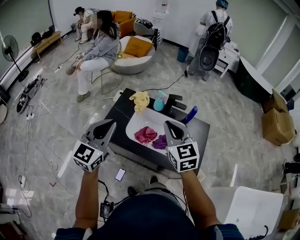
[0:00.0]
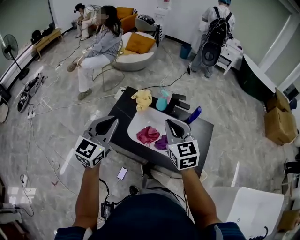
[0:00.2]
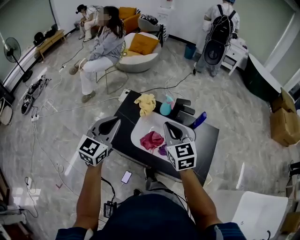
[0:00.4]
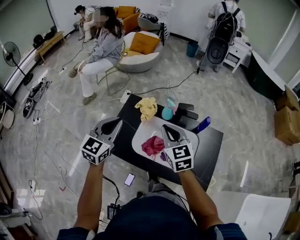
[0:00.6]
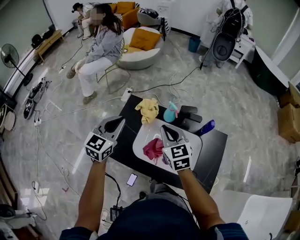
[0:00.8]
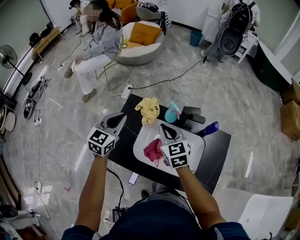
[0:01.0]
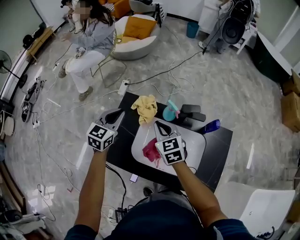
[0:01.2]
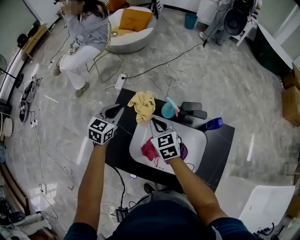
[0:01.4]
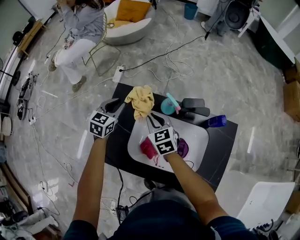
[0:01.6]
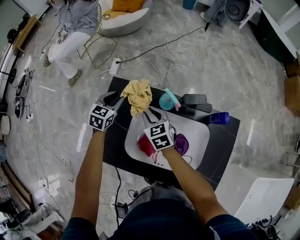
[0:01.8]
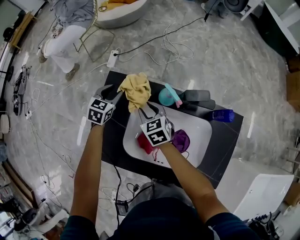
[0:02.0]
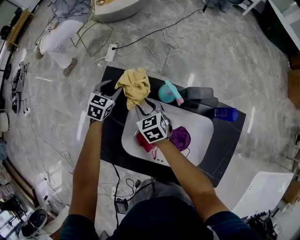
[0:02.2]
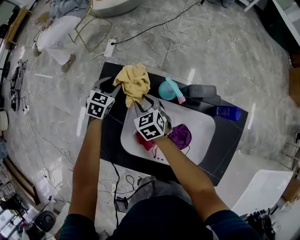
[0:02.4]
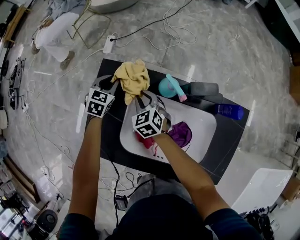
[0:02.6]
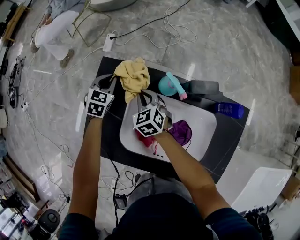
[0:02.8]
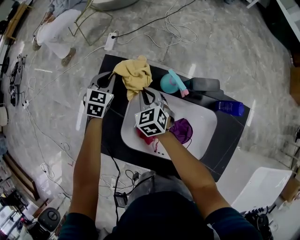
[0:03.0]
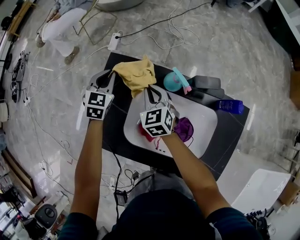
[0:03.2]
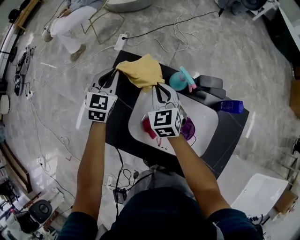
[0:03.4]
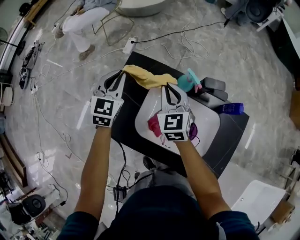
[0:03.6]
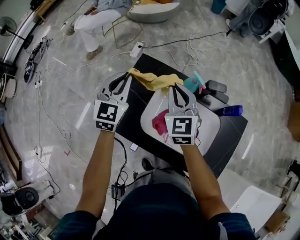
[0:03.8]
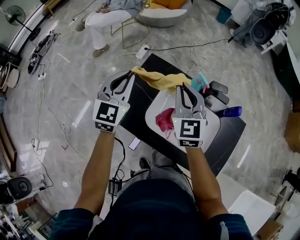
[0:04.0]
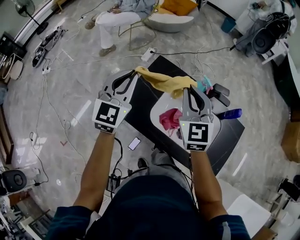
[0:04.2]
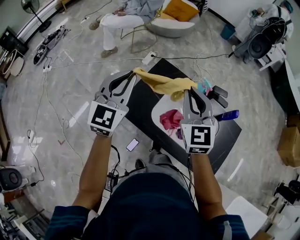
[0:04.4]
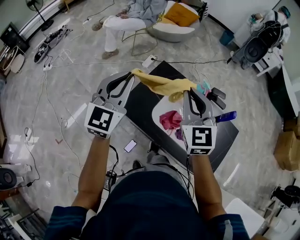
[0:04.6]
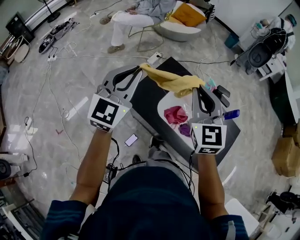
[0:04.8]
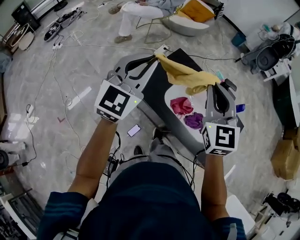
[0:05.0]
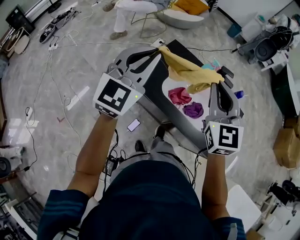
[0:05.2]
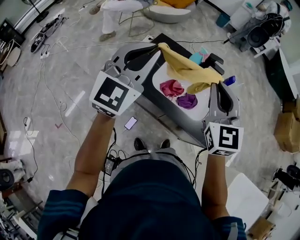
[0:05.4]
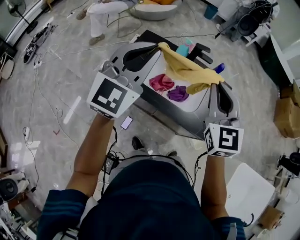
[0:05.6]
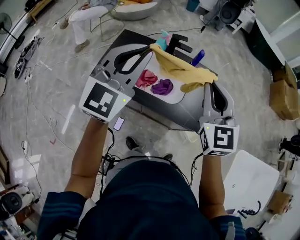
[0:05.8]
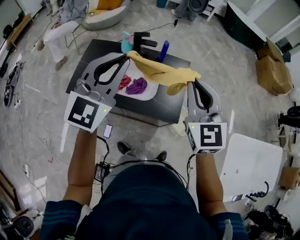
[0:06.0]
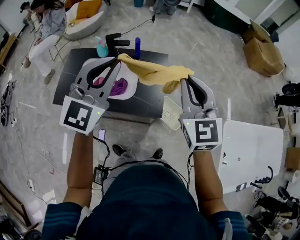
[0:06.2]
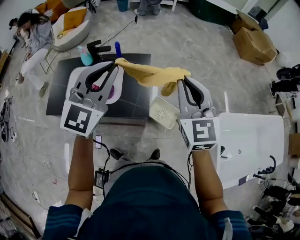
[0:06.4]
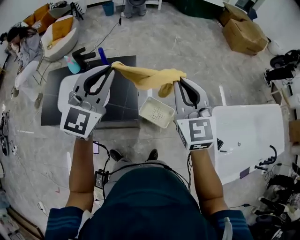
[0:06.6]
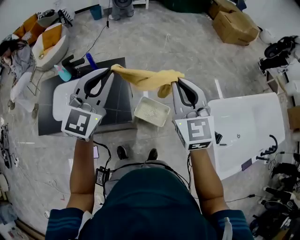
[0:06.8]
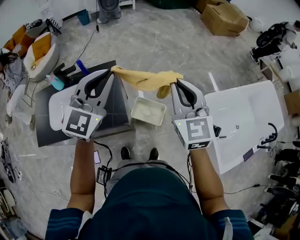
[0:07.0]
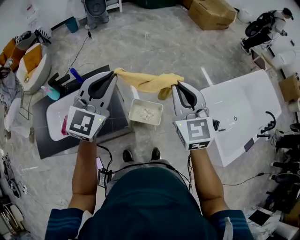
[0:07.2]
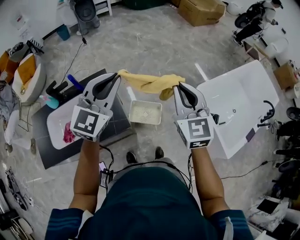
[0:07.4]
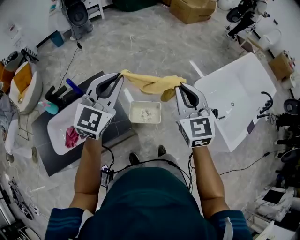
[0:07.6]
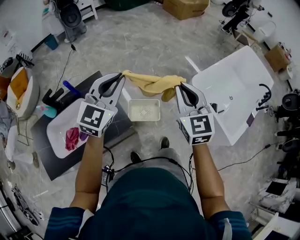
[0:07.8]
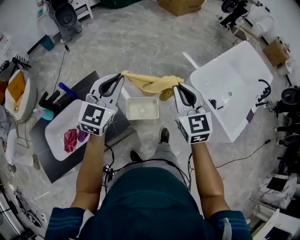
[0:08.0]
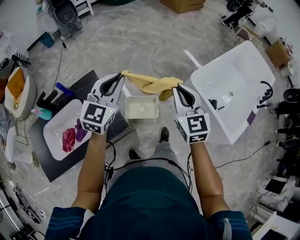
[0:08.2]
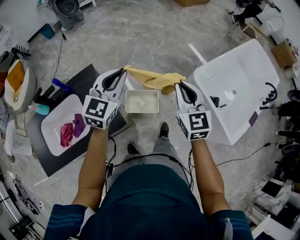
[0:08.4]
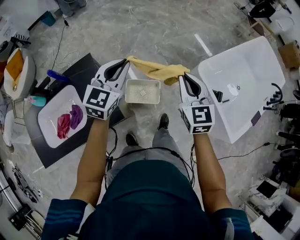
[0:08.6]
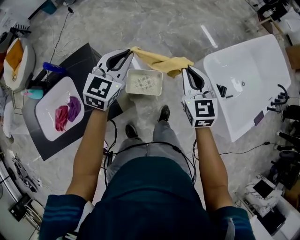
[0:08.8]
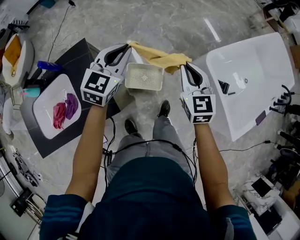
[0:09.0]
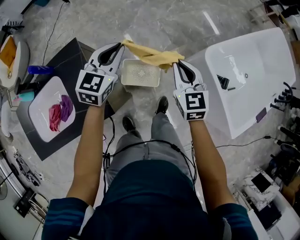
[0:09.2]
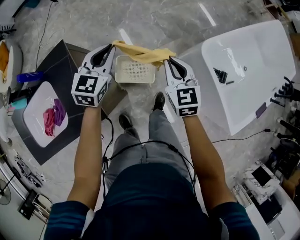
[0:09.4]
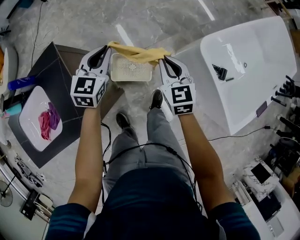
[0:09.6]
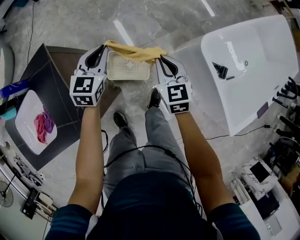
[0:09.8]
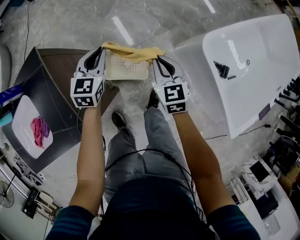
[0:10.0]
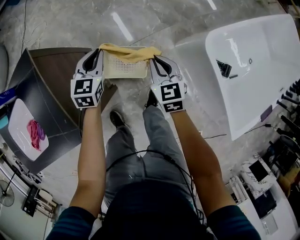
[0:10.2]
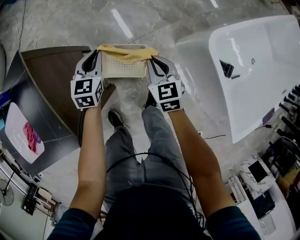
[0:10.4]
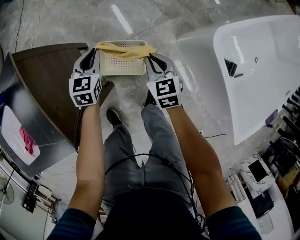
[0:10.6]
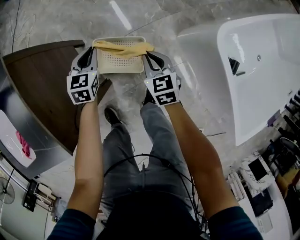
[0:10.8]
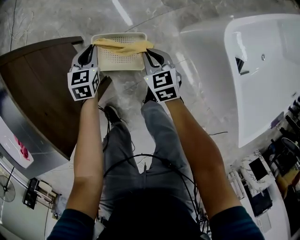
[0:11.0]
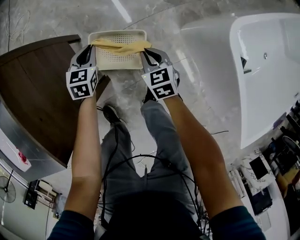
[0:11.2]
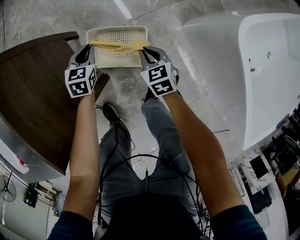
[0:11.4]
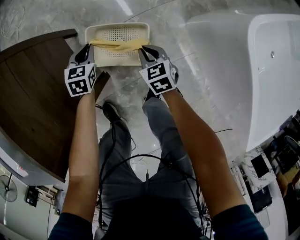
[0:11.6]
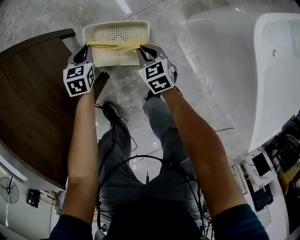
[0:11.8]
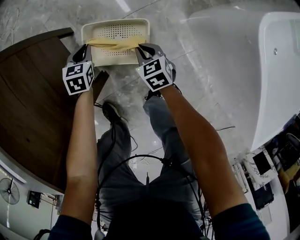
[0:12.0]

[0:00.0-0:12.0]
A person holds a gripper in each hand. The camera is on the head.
0.0 to 1.6 s: Both grippers travel together forward and downward, about 50 cm. The right gripper rotates approximately 20 degrees; the left gripper points its fingers approximately 30 degrees further downward.
1.6 to 3.0 s: The left gripper heads downward and forward, covering some 15 cm, and opens and closes again. Meanwhile the right gripper moves downward, roughly 10 cm, and opens, then closes once more.
3.0 to 4.4 s: The two grippers go approximately 50 cm upward and backward. The left gripper tips its fingers upward by some 40 degrees, while the right gripper changes its angle by some 30 degrees.
4.4 to 6.0 s: The pair of grippers is taken about 50 cm. The left gripper turns by roughly 30 degrees, while the right gripper swivels about 20 degrees.
6.0 to 7.6 s: The left gripper moves approximately 40 cm, and rotates approximately 40 degrees; the right gripper ends up some 35 cm from where it was, and swivels approximately 40 degrees.
7.6 to 9.0 s: Both grippers move downward and forward, roughly 30 cm.
9.0 to 10.4 s: Both grippers move downward, roughly 40 cm. The left gripper rotates roughly 30 degrees.
10.4 to 12.0 s: The two grippers go about 35 cm downward. The left gripper swivels roughly 20 degrees.

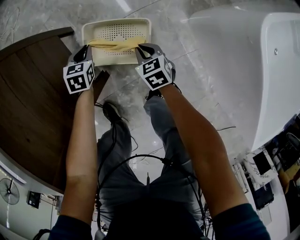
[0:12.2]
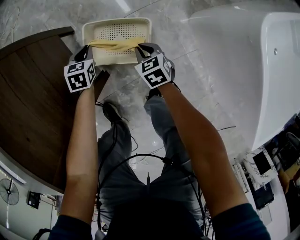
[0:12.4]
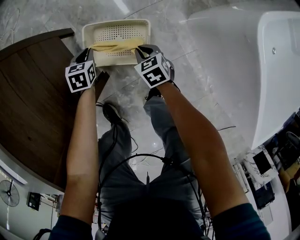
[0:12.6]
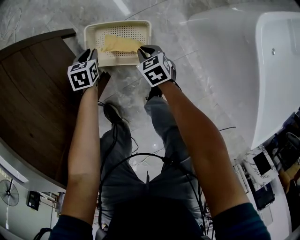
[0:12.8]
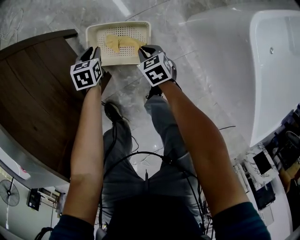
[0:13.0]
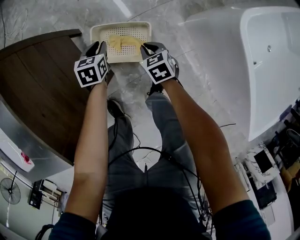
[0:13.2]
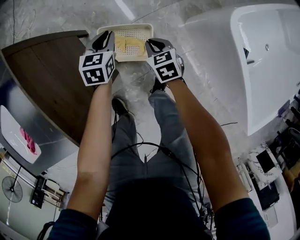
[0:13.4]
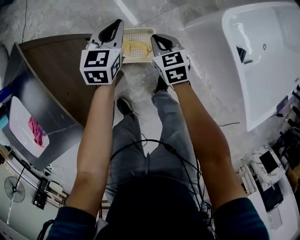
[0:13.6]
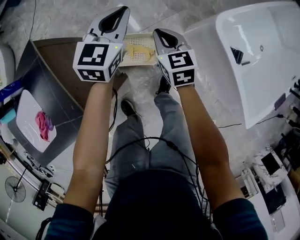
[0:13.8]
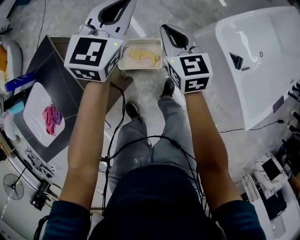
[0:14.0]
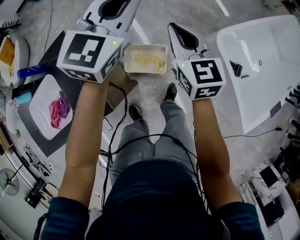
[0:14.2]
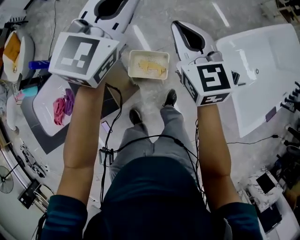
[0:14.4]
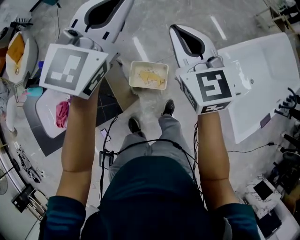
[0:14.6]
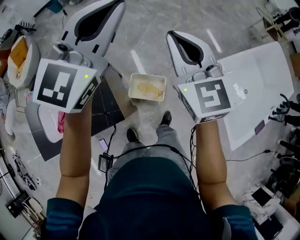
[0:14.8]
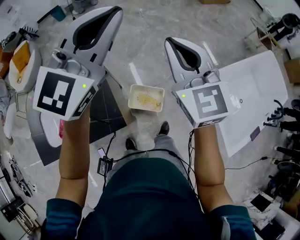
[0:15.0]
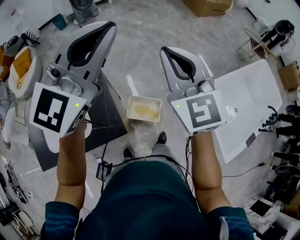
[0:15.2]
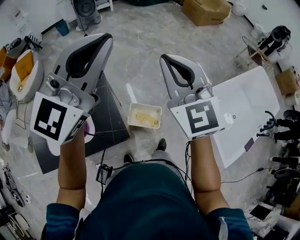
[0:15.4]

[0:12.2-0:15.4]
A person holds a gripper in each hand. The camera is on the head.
12.2 to 13.8 s: Both grippers move upward, roughly 50 cm. The right gripper turns by some 20 degrees; the left gripper angles its fingers upward, by about 40 degrees.
13.8 to 15.4 s: The grippers both shift upward by some 35 cm. The right gripper changes its angle by some 40 degrees. Meanwhile the left gripper tilts its fingers some 30 degrees upward.

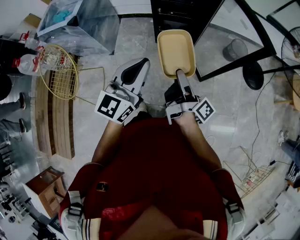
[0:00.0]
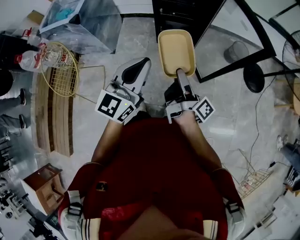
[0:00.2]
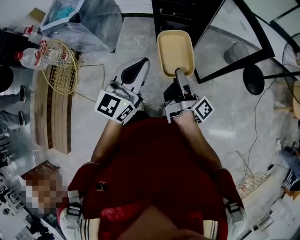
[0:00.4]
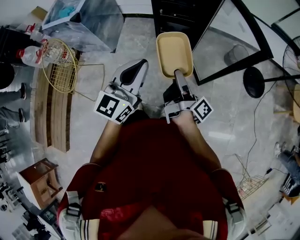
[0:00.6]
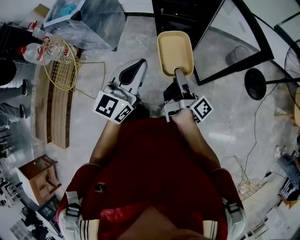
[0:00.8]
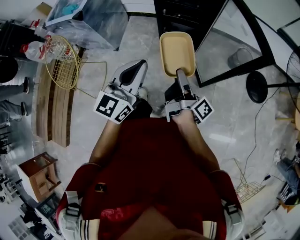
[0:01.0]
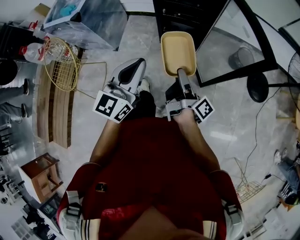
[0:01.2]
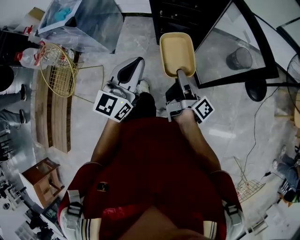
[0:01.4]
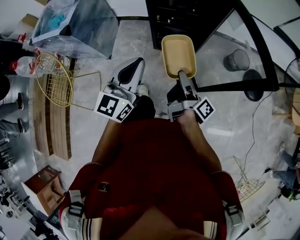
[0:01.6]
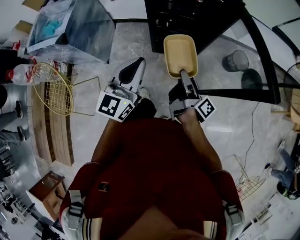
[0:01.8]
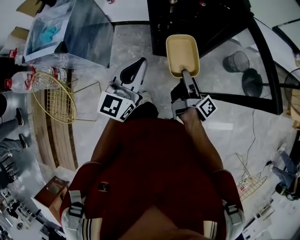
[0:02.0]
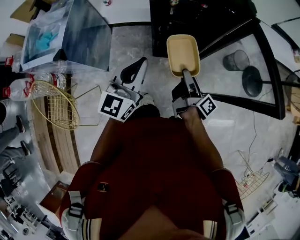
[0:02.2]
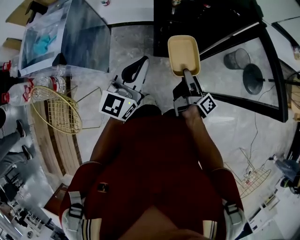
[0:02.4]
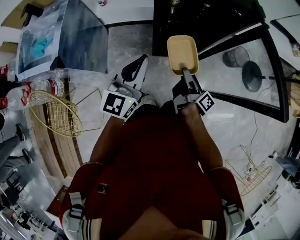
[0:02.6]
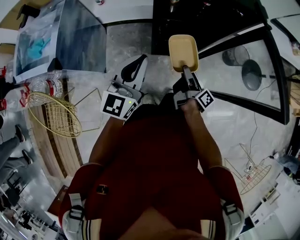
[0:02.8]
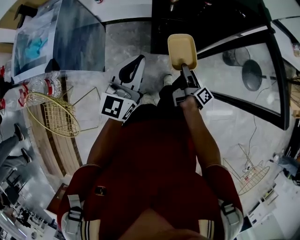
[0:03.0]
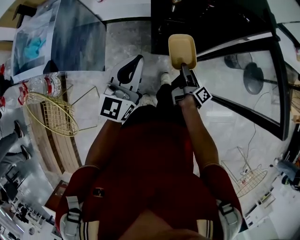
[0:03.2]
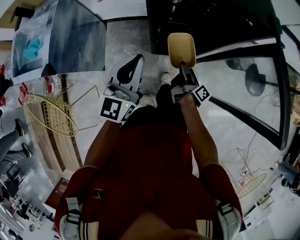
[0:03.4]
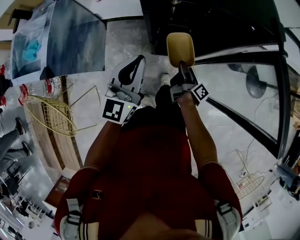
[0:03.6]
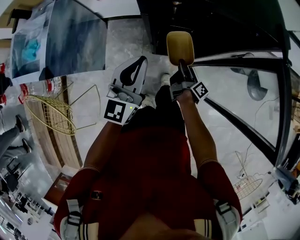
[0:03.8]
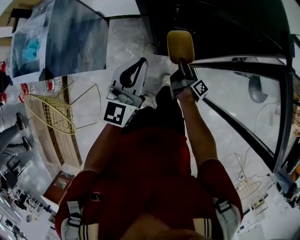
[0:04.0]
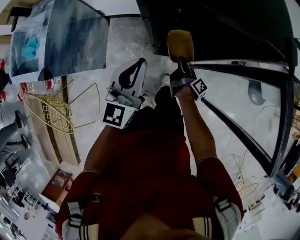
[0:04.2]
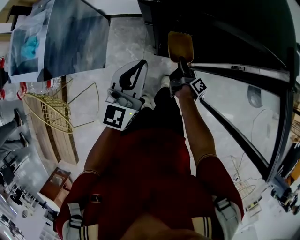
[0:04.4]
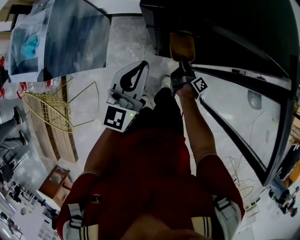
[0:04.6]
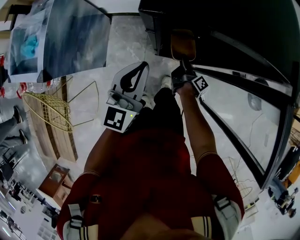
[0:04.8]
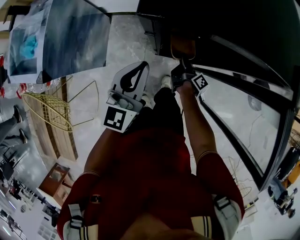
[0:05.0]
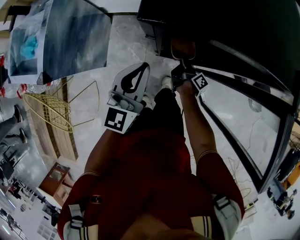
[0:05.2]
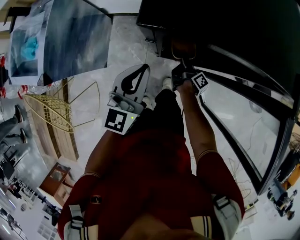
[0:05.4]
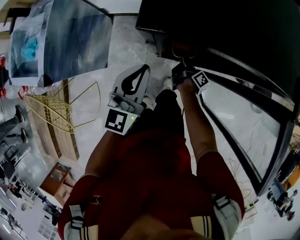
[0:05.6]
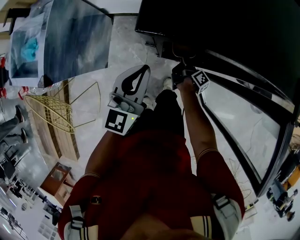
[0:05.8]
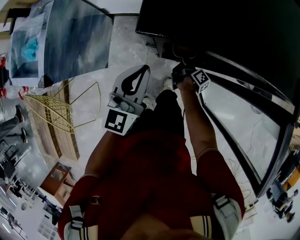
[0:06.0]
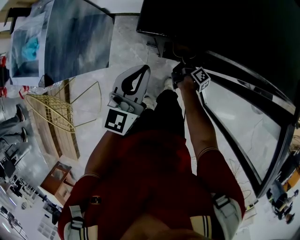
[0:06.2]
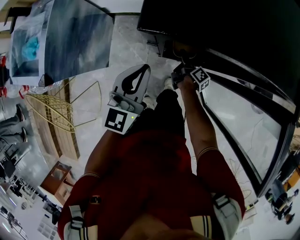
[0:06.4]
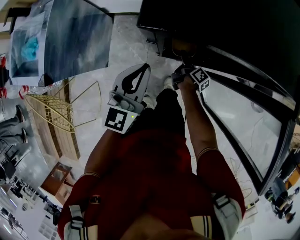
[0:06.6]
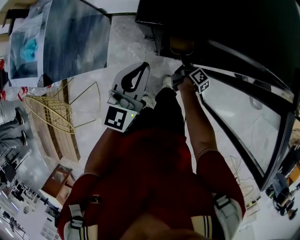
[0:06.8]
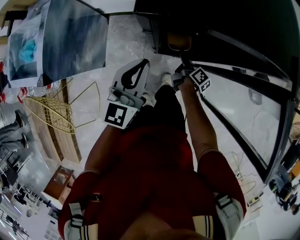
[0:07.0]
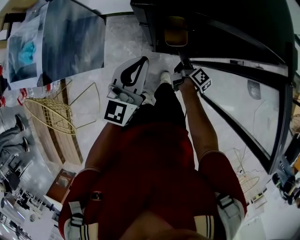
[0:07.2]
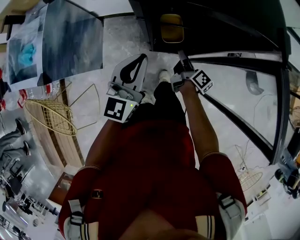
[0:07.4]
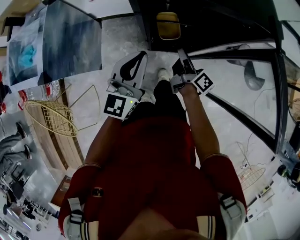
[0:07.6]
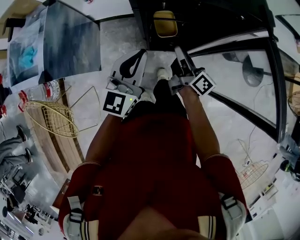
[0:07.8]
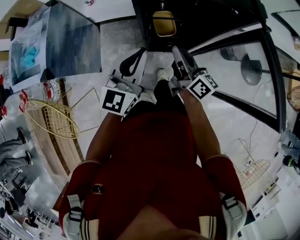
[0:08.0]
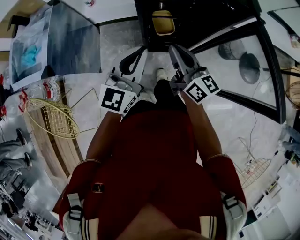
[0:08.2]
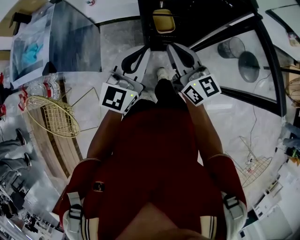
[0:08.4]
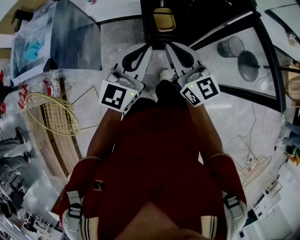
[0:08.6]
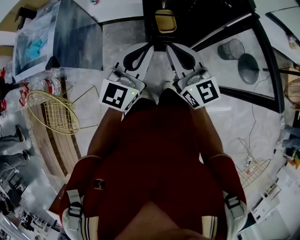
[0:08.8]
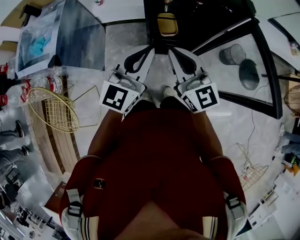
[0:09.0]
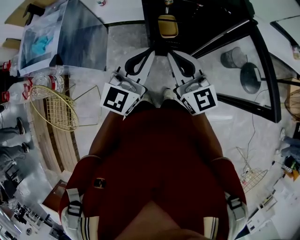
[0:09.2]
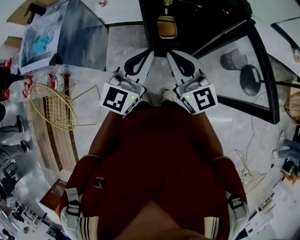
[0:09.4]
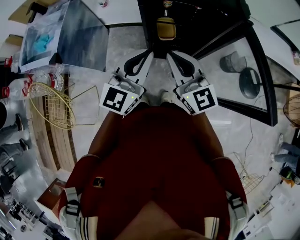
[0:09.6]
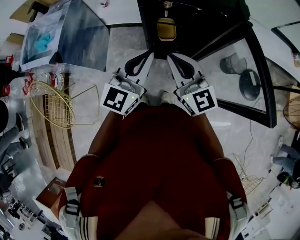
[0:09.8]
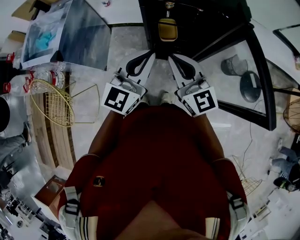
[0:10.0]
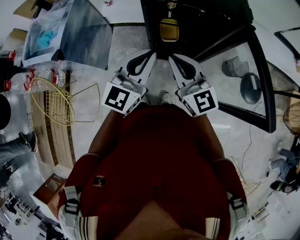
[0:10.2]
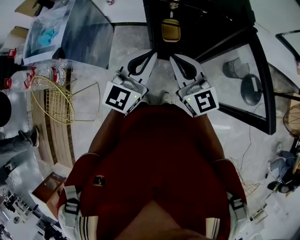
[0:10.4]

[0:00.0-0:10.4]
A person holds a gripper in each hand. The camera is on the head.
0.0 to 1.4 s: The left gripper changes place by some 10 cm.
1.4 to 3.0 s: The left gripper shifts by approximately 30 cm.
3.0 to 4.4 s: The left gripper ends up approximately 10 cm from where it was.
4.4 to 6.0 s: The left gripper moves approximately 5 cm.
6.0 to 7.4 s: The left gripper moves about 10 cm.
7.4 to 9.0 s: The left gripper shifts by some 15 cm.
